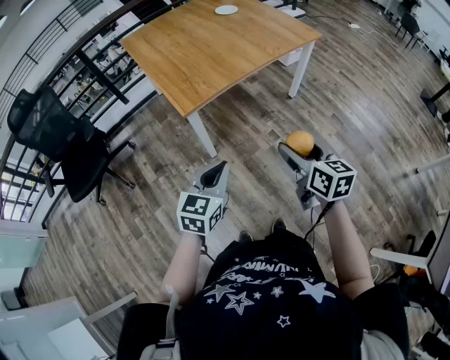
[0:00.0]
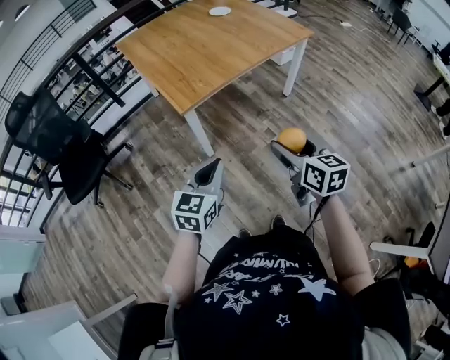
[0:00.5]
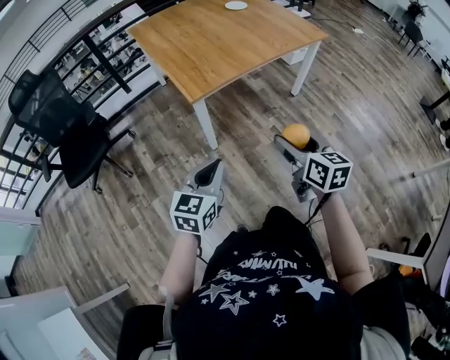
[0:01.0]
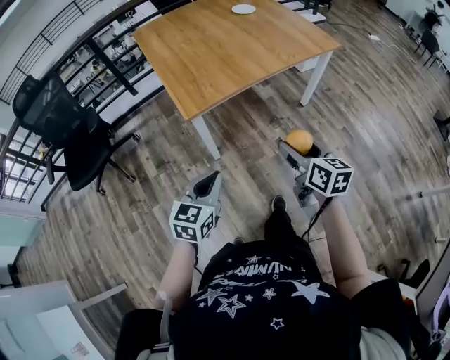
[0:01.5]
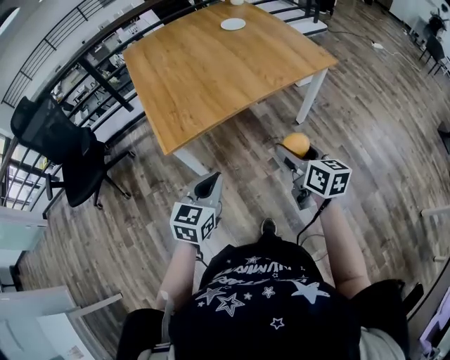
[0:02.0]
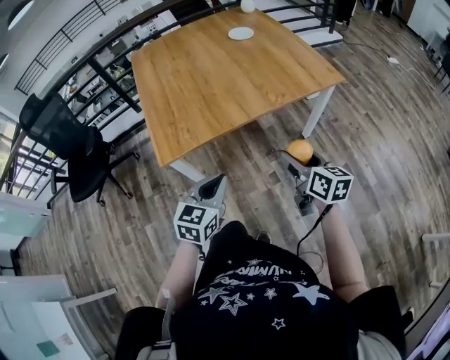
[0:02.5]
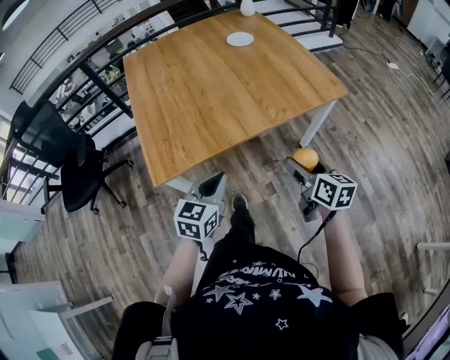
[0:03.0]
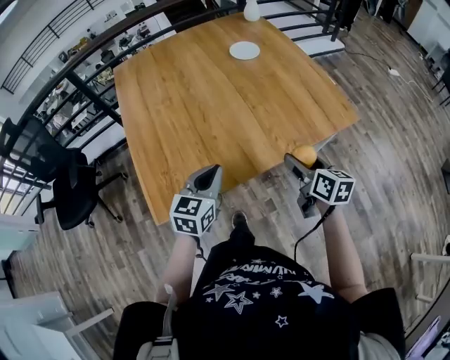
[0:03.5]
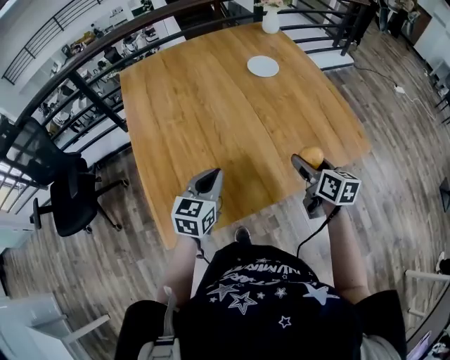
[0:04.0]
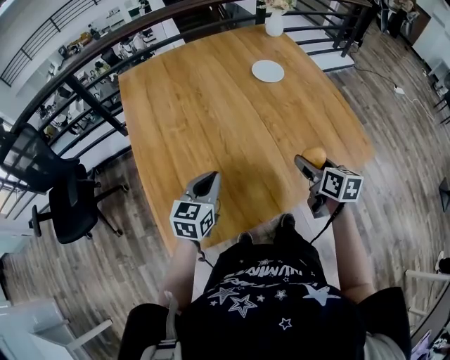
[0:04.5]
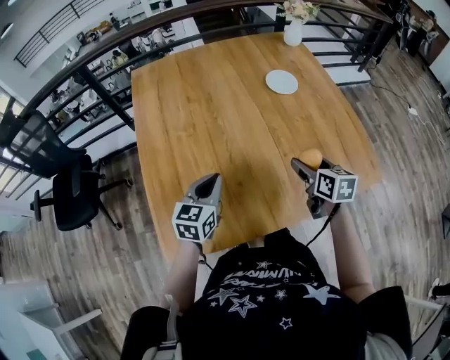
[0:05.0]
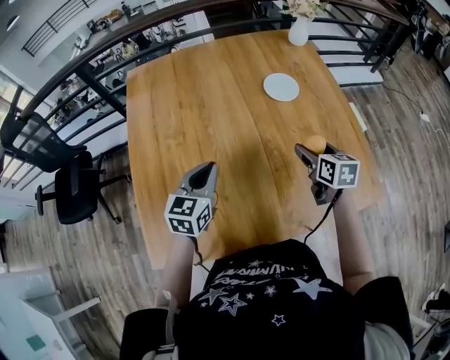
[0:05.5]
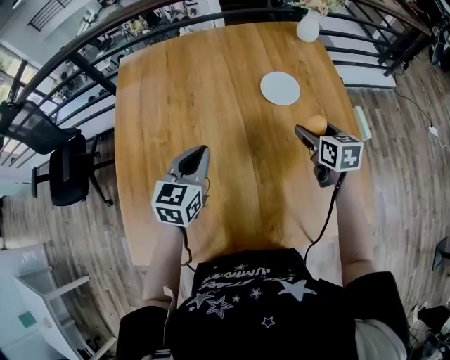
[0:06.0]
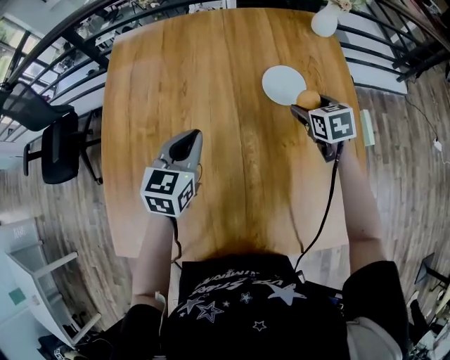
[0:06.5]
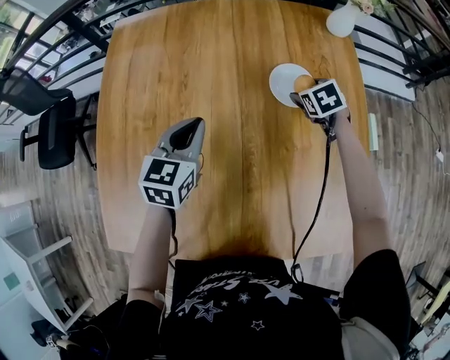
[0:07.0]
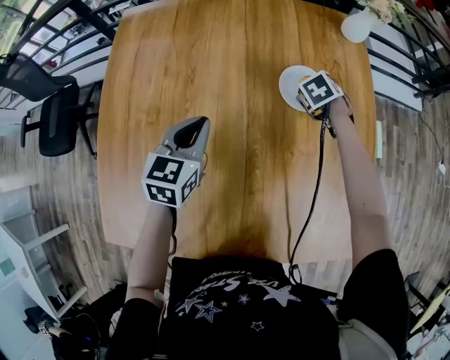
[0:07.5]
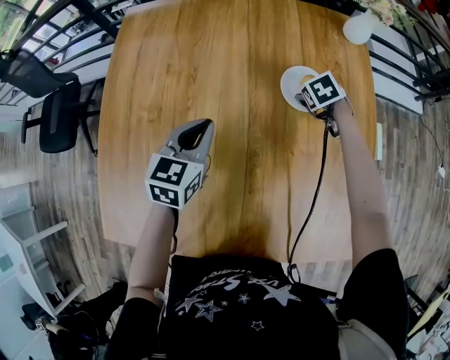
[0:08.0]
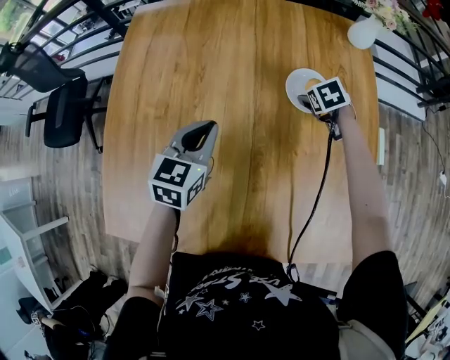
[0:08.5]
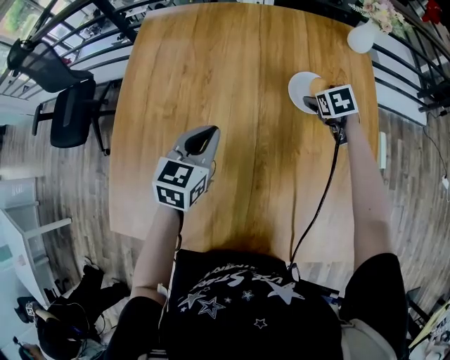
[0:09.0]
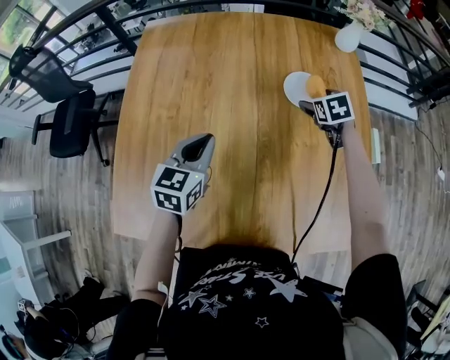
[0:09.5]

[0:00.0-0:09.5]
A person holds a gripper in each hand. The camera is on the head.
0:00.0 to 0:02.0: Both grippers move forward and to the right, about 20 cm.
0:02.0 to 0:04.0: Both grippers are carried forward, about 40 cm.
0:04.0 to 0:05.5: The grippers both shift forward by approximately 15 cm.
0:05.5 to 0:07.5: The left gripper goes about 20 cm forward. The right gripper goes approximately 35 cm forward and downward, and angles its fingers downward, by approximately 40 degrees.
0:07.5 to 0:09.5: The left gripper heads backward, covering approximately 10 cm, while the right gripper moves upward and backward, some 10 cm, and turns by about 20 degrees.

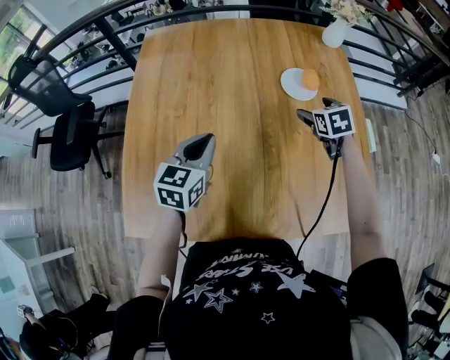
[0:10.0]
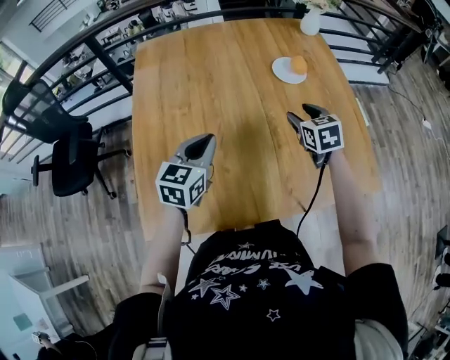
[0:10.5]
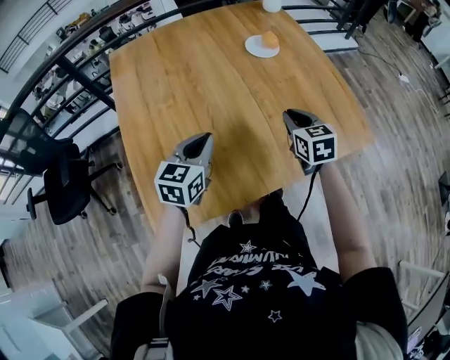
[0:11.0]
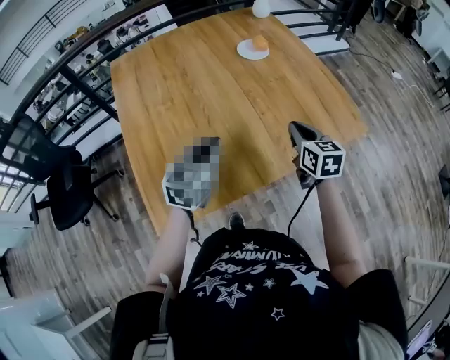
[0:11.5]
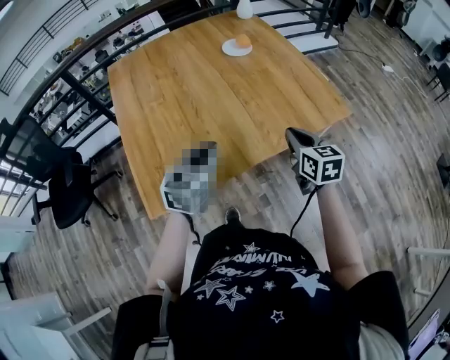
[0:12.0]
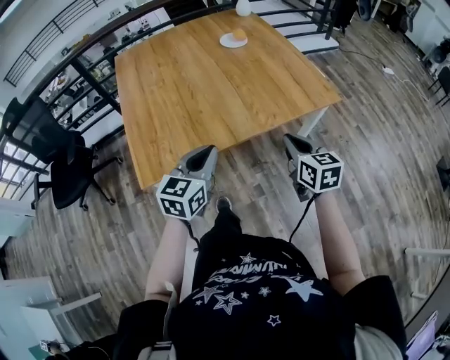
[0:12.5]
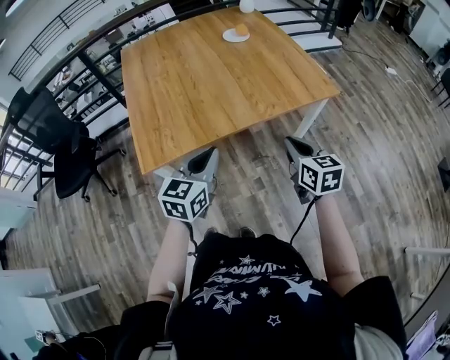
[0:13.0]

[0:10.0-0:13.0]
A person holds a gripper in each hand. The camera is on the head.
0:10.0 to 0:11.5: The left gripper is displaced backward by some 20 cm, and swivels roughly 20 degrees. The right gripper shifts approximately 35 cm backward, turns by approximately 40 degrees, and closes.
0:11.5 to 0:13.0: The grippers both shift backward by about 25 cm.

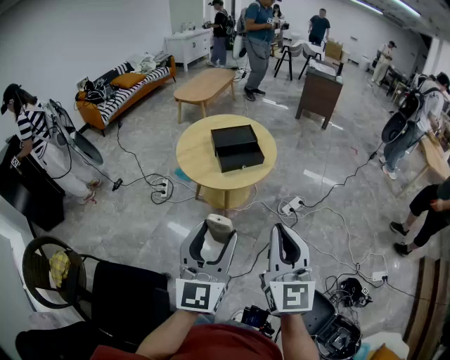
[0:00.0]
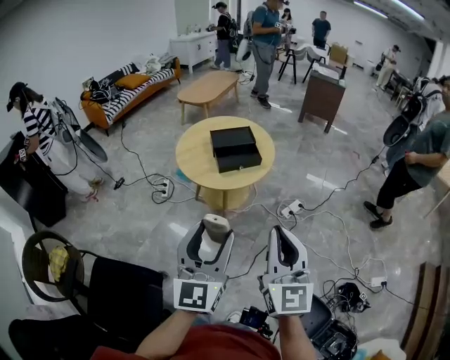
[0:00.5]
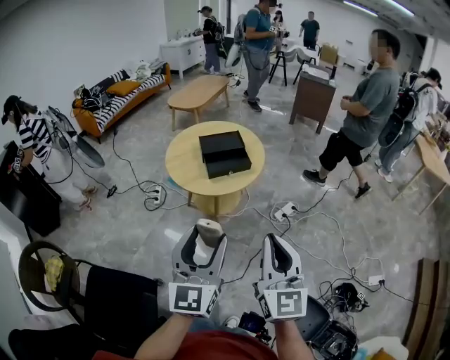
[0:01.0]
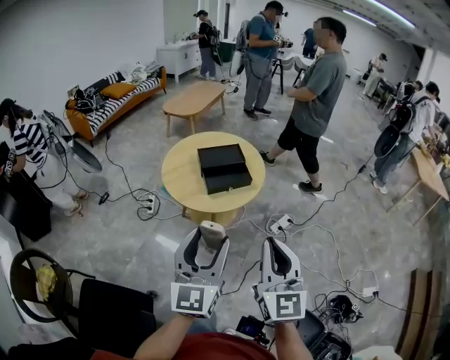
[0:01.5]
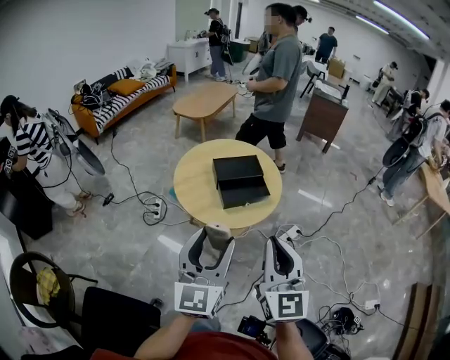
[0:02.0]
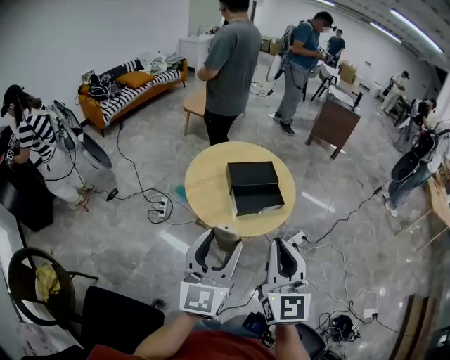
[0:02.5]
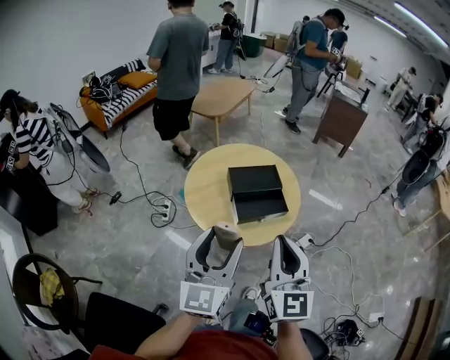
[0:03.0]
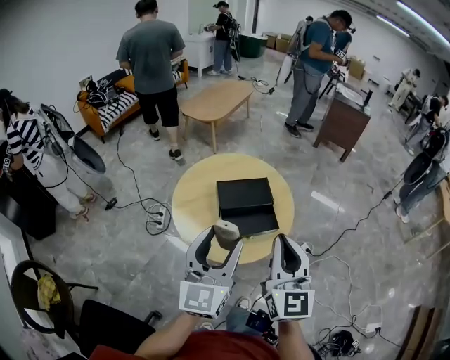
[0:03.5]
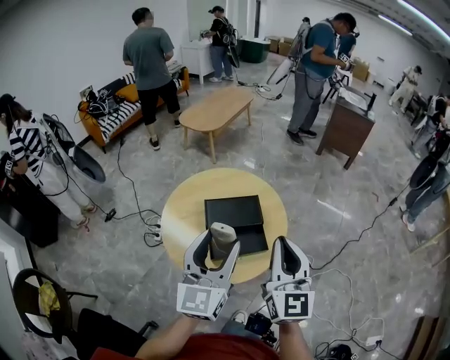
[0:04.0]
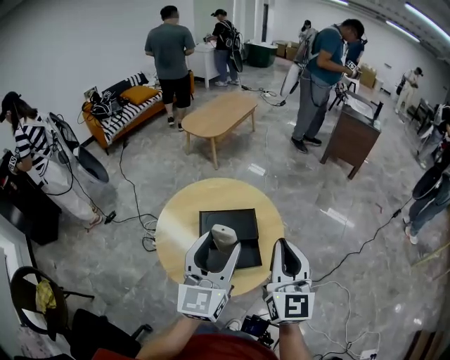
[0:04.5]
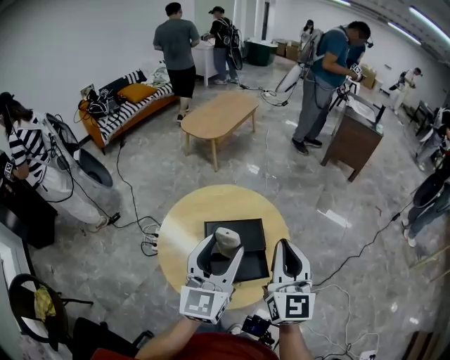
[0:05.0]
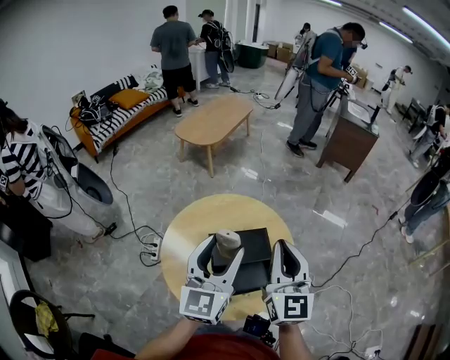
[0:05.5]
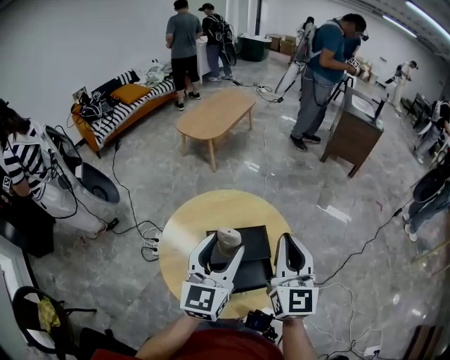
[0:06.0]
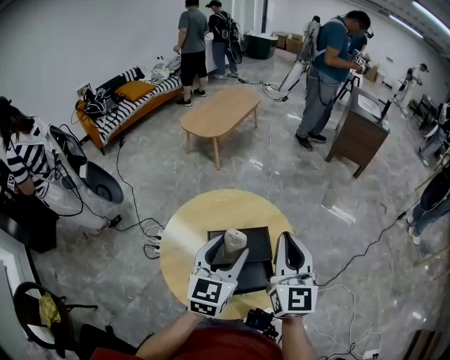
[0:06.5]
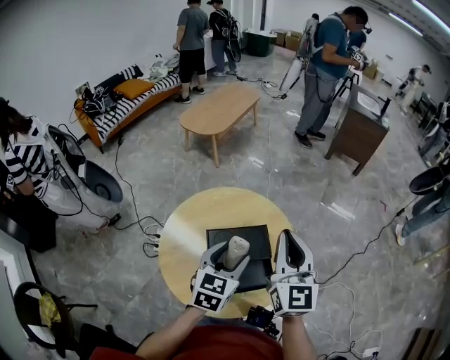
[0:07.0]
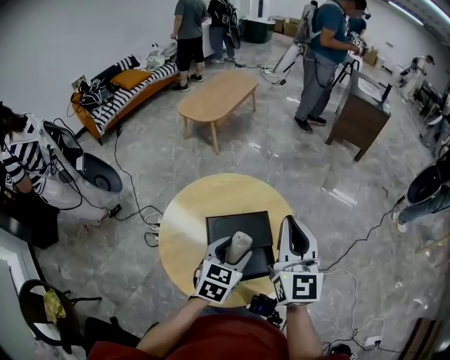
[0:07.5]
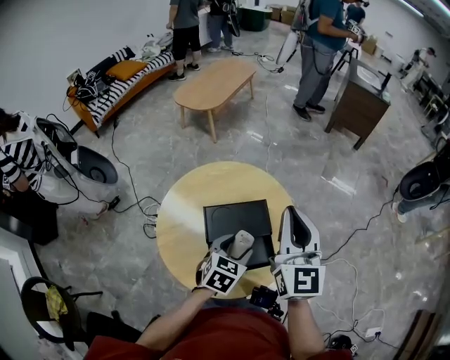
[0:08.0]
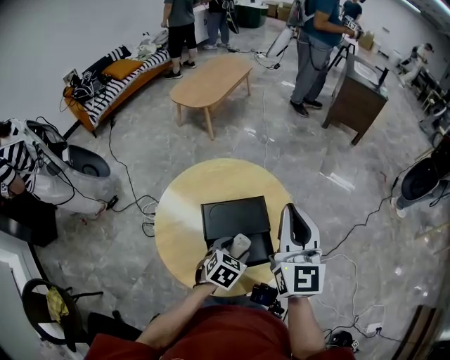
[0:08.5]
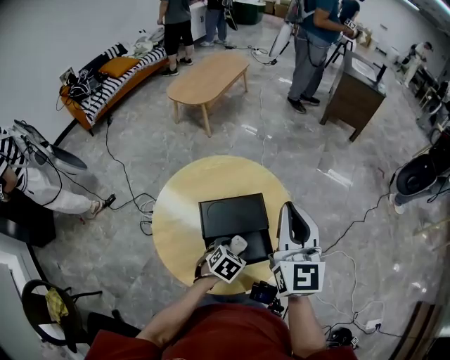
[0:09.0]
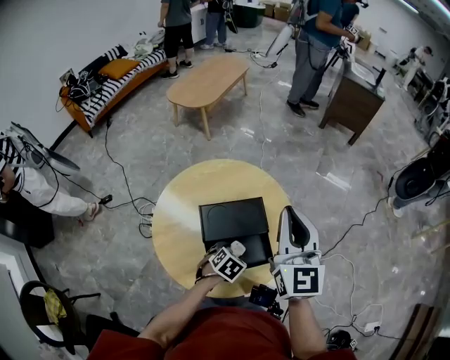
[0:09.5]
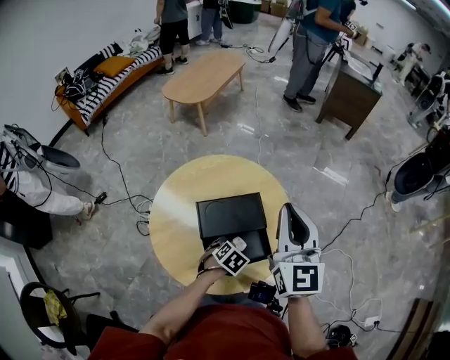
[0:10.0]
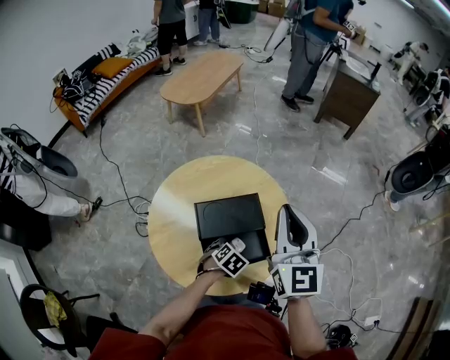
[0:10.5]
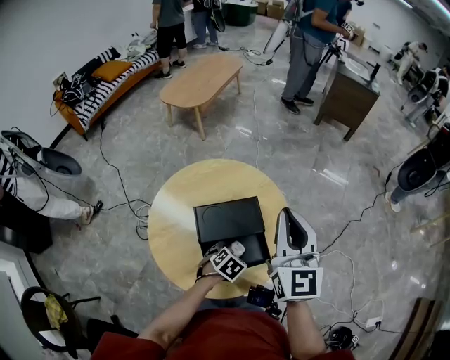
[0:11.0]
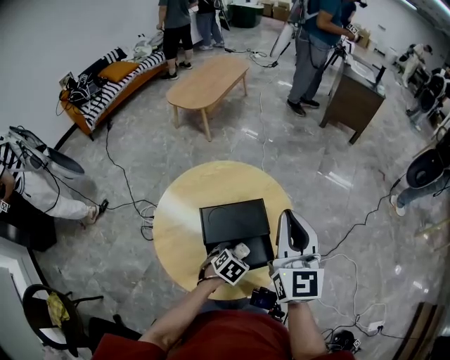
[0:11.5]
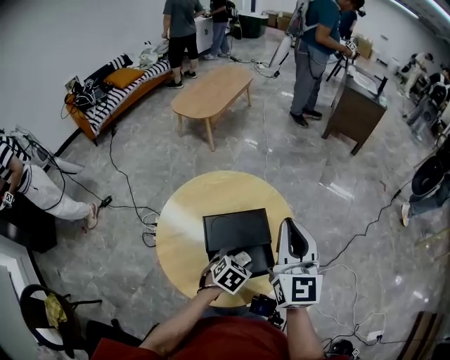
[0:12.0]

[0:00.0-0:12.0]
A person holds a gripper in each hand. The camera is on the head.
0:00.0 to 0:02.0: Both grippers travel together forward, roughly 20 cm.
0:02.0 to 0:04.0: Both grippers move forward, some 30 cm.
0:04.0 to 0:06.0: The two grippers go about 20 cm forward.
0:06.0 to 0:08.0: The left gripper heads downward, covering approximately 20 cm, and points its fingers roughly 40 degrees further downward.
0:08.0 to 0:10.0: The left gripper travels downward by approximately 15 cm, and rotates roughly 30 degrees.
0:10.0 to 0:12.0: The left gripper goes roughly 10 cm upward.

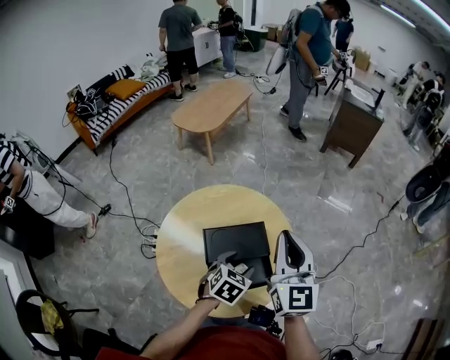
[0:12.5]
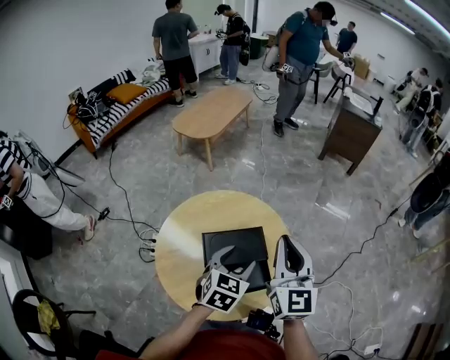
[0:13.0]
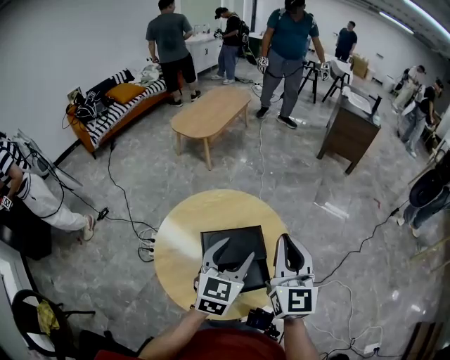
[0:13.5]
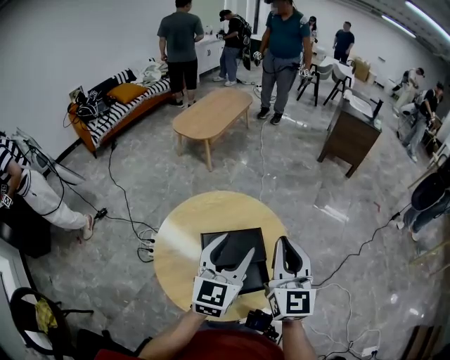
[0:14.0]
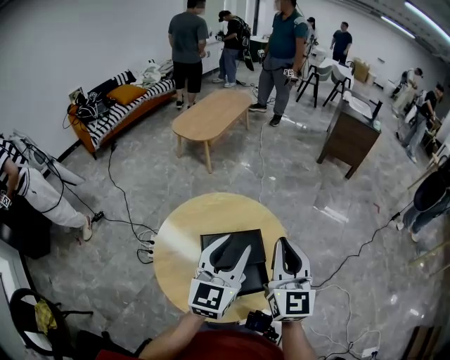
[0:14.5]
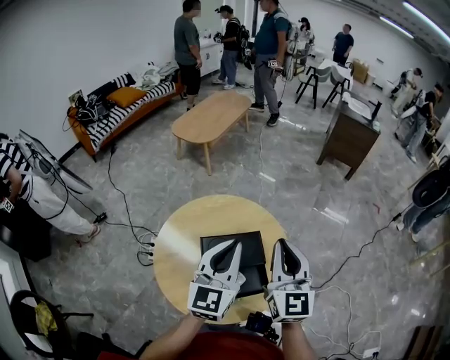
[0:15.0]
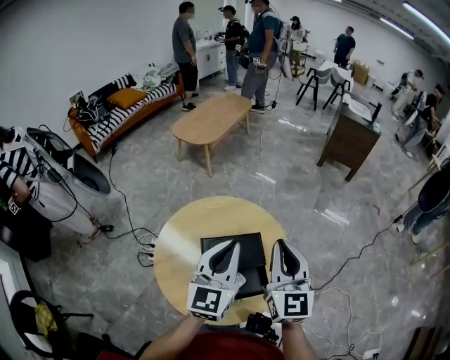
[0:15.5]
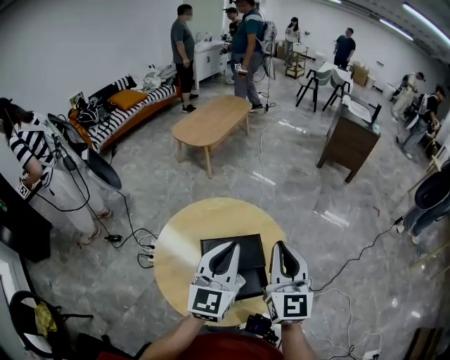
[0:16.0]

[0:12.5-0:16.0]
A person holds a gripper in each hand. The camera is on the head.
0:12.5 to 0:14.5: The left gripper moves upward, approximately 20 cm, and tilts its fingers approximately 40 degrees upward.
0:14.5 to 0:16.0: The left gripper closes.
